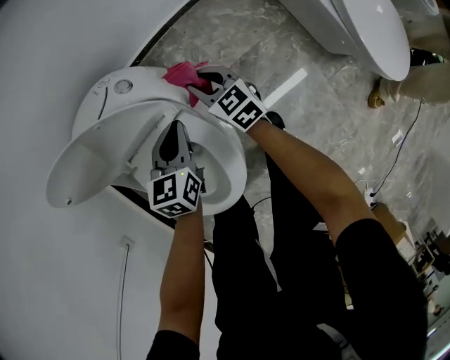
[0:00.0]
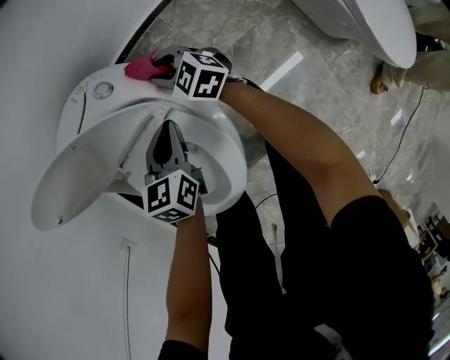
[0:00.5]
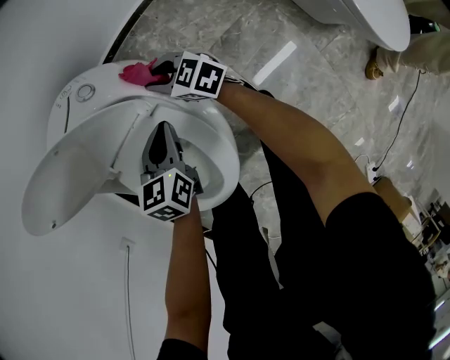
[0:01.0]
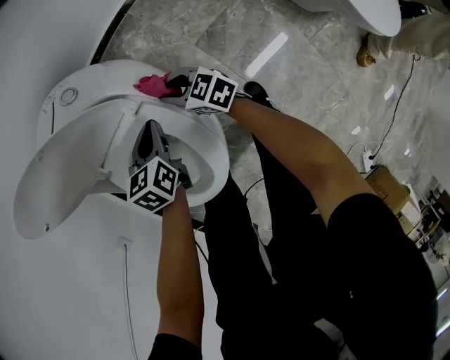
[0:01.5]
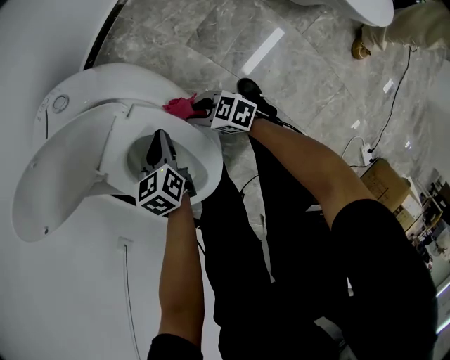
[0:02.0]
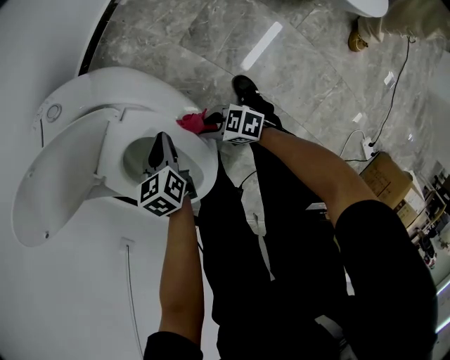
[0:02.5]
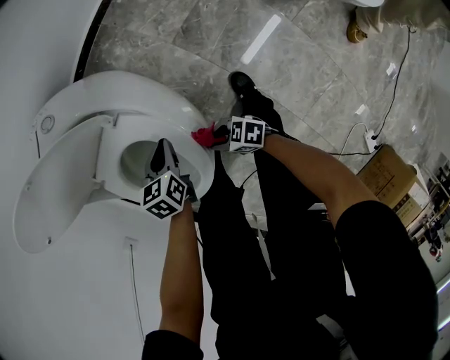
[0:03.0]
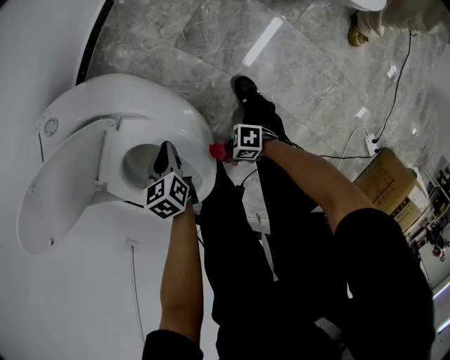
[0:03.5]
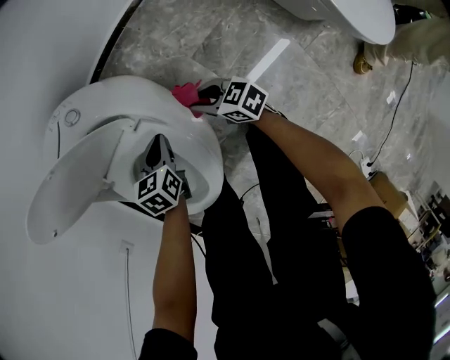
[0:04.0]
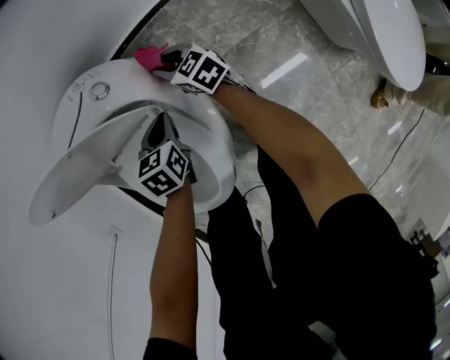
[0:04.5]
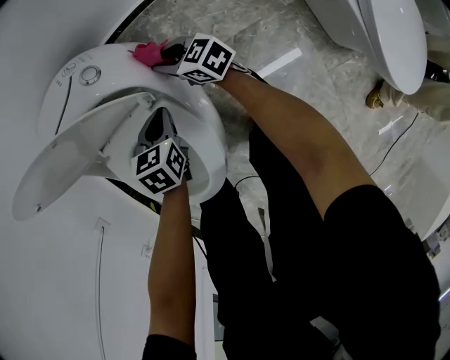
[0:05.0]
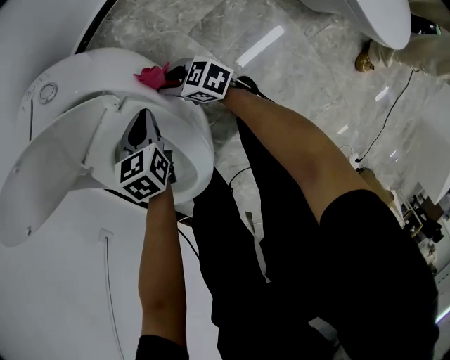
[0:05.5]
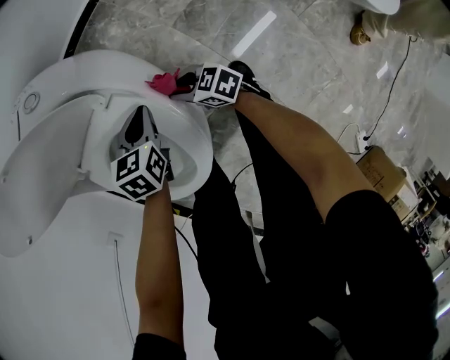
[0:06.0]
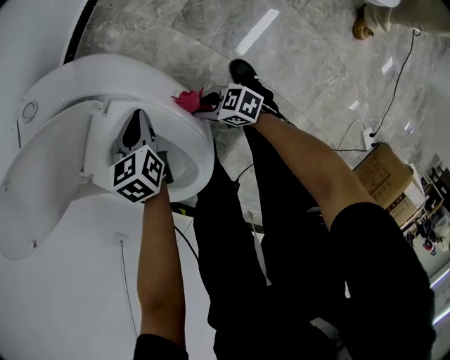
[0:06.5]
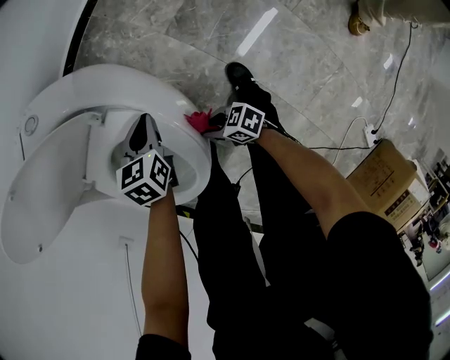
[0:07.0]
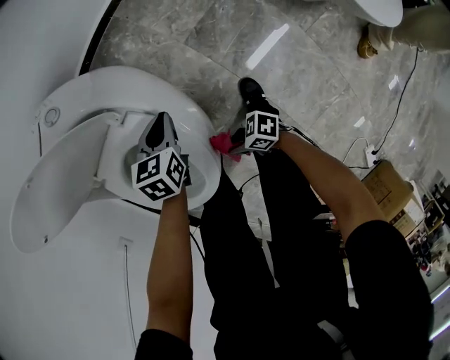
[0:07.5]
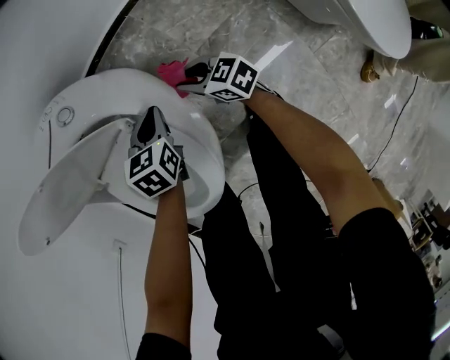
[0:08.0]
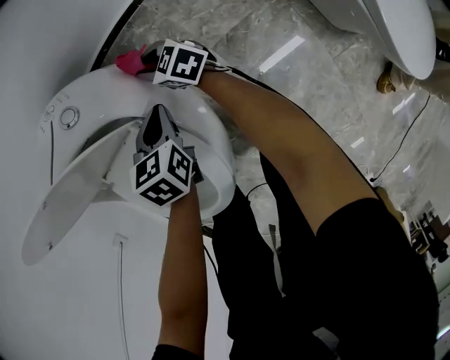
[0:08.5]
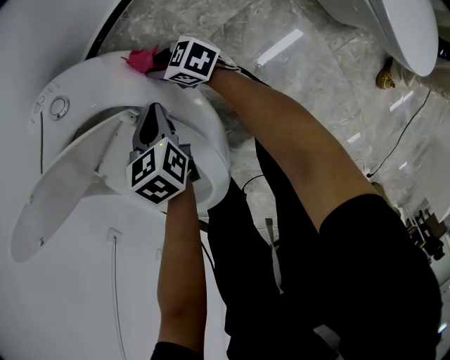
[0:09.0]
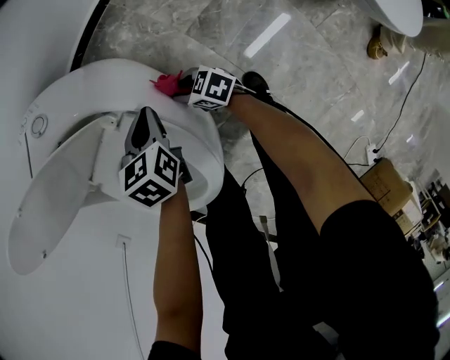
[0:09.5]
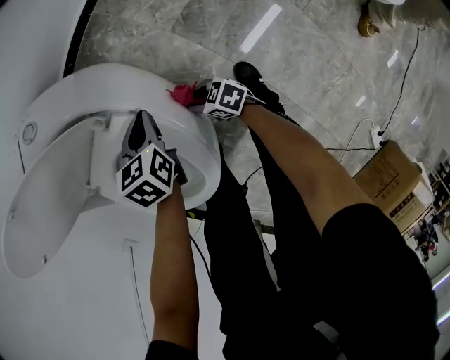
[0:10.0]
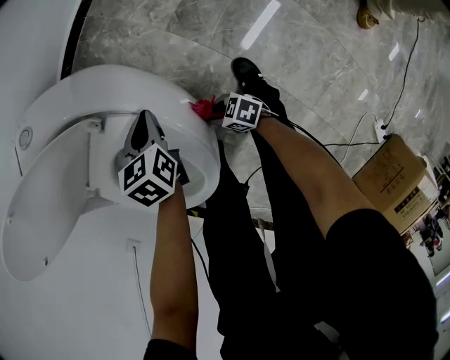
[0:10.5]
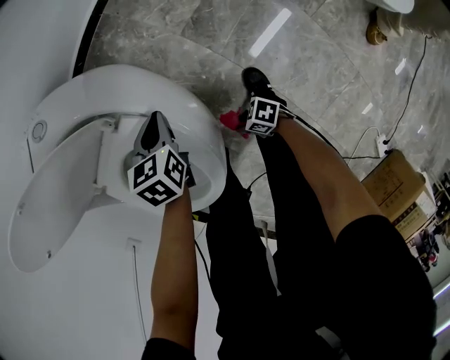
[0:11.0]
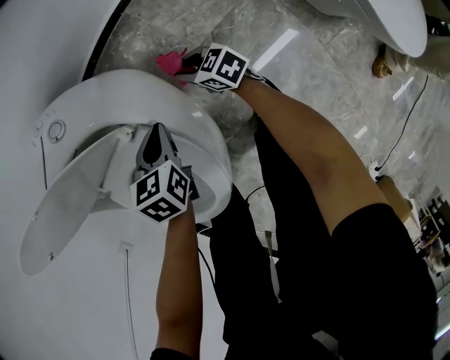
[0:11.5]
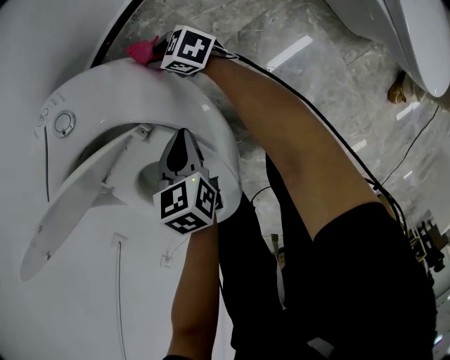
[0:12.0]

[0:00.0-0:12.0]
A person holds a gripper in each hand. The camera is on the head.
0:00.0 to 0:02.0: The left gripper is displaced downward and backward by roughly 15 cm; the right gripper goes approximately 20 cm backward and downward, and swivels roughly 30 degrees.
0:04.0 to 0:06.0: The right gripper goes approximately 10 cm to the left and downward, and goes forward and returns, about 20 cm each way. The left gripper travels forward and back again, roughly 10 cm each way.
0:06.0 to 0:08.0: The right gripper moves approximately 15 cm, while the left gripper moves about 10 cm.
0:08.0 to 0:10.0: The left gripper moves backward, some 5 cm. The right gripper goes some 20 cm backward, downward and to the left.
0:10.0 to 0:12.0: The right gripper shifts by roughly 30 cm.

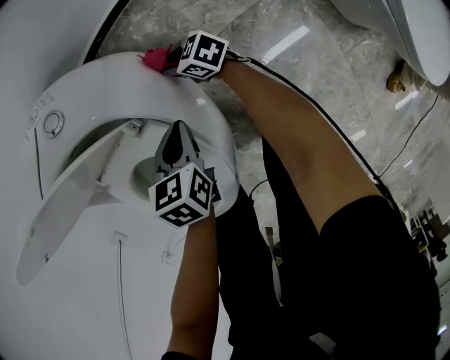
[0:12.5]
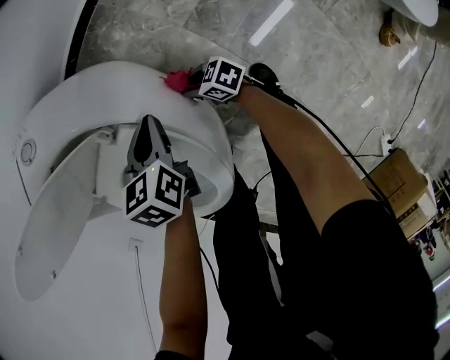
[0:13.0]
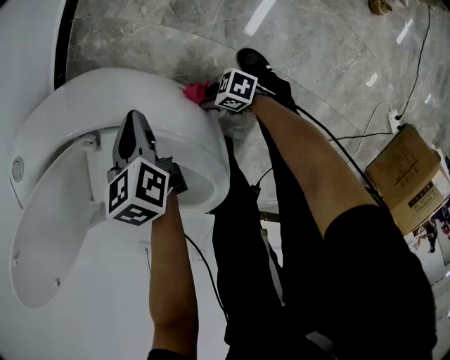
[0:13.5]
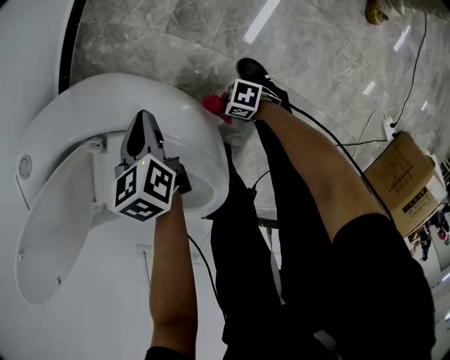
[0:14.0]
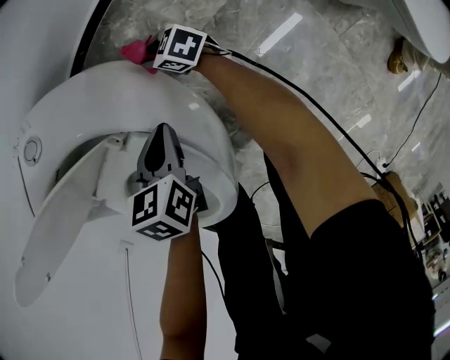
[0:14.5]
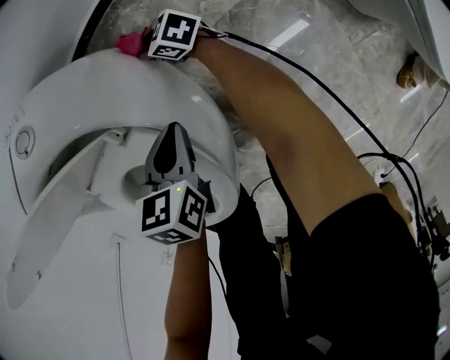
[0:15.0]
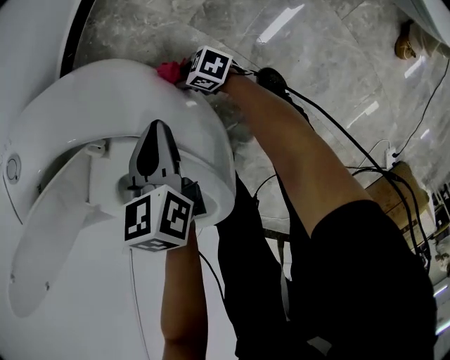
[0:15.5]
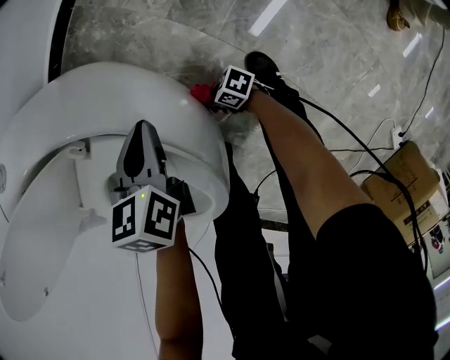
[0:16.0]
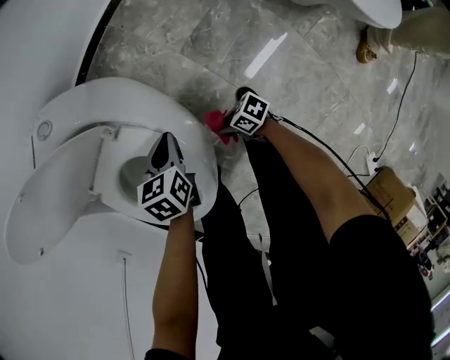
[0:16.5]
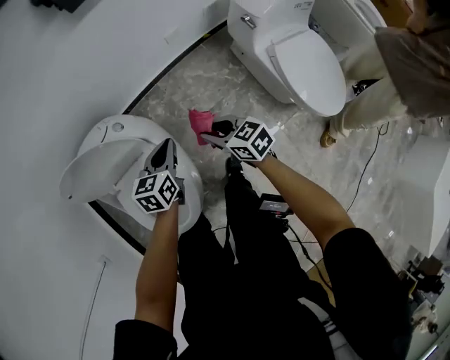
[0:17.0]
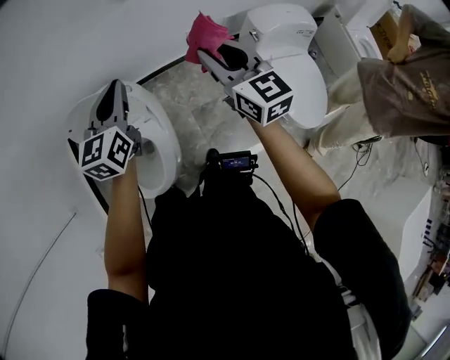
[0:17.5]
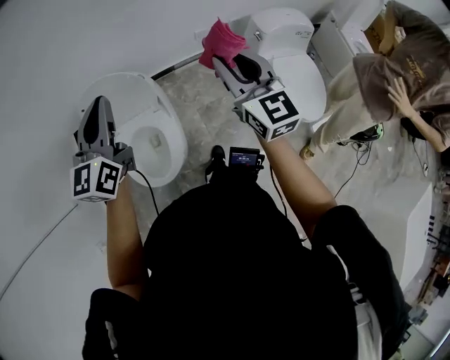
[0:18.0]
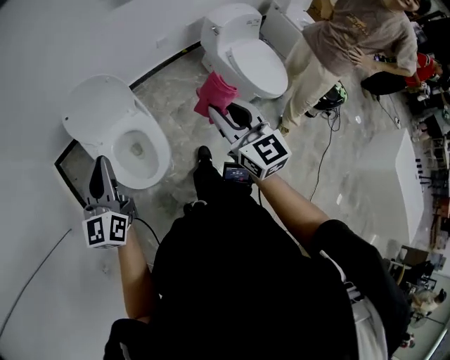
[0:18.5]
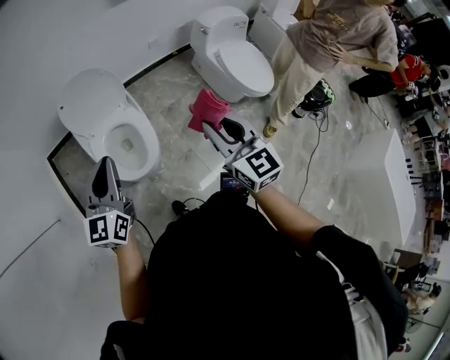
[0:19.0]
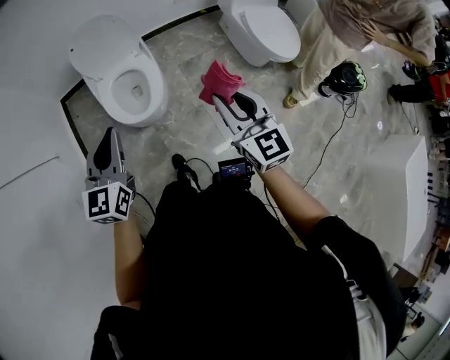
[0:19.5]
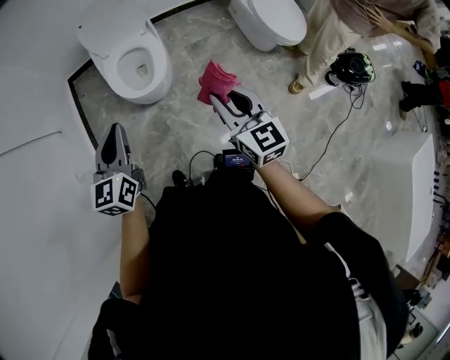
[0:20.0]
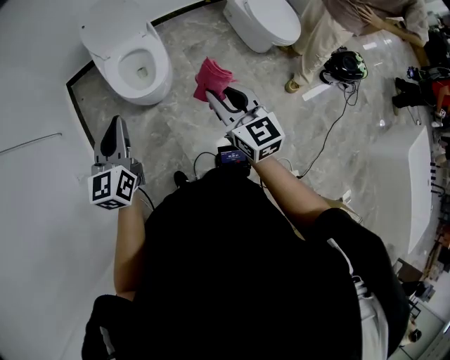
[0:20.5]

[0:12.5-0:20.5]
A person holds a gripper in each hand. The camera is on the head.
0:14.5 to 0:16.5: The right gripper moves approximately 10 cm downward and comes back, and rotates about 40 degrees; the left gripper shifts by about 10 cm.
0:16.5 to 0:18.5: The two grippers go about 70 cm upward. The left gripper points its fingers approximately 60 degrees further upward. The right gripper changes its angle by approximately 90 degrees.
0:18.5 to 0:20.5: The two grippers go approximately 30 cm backward.

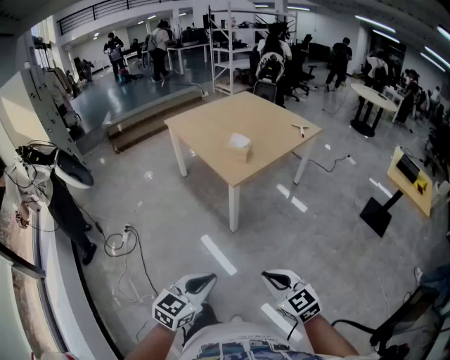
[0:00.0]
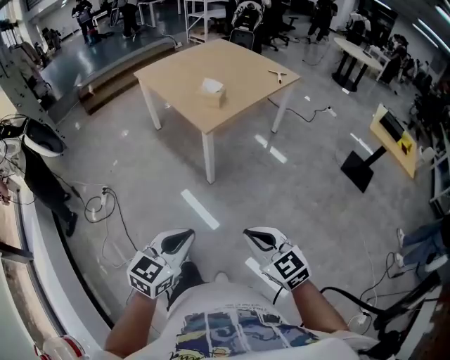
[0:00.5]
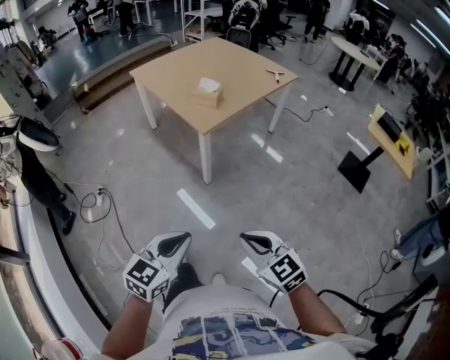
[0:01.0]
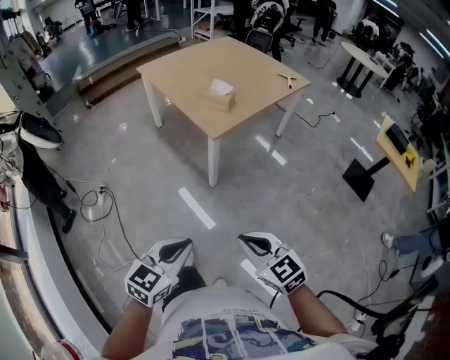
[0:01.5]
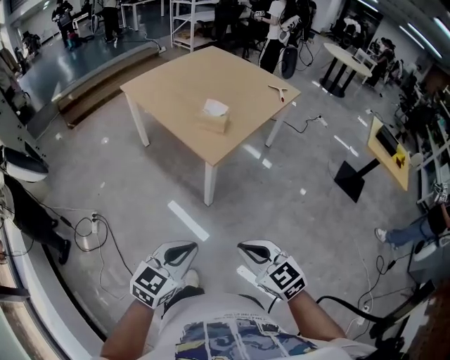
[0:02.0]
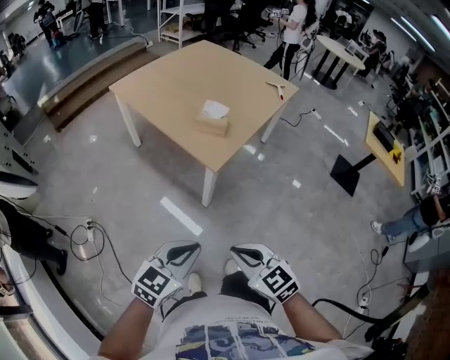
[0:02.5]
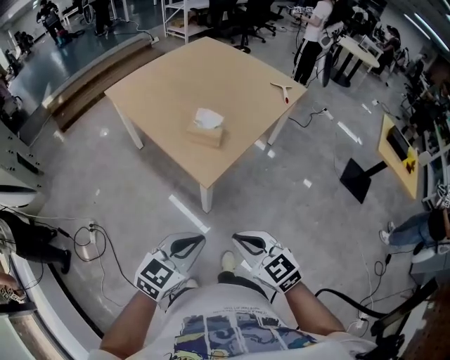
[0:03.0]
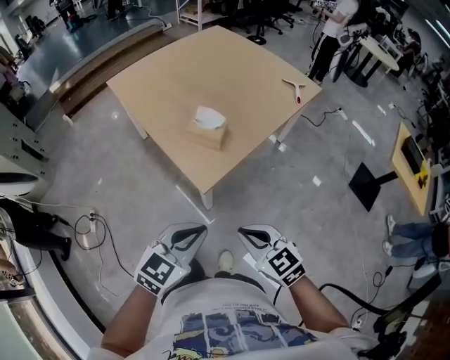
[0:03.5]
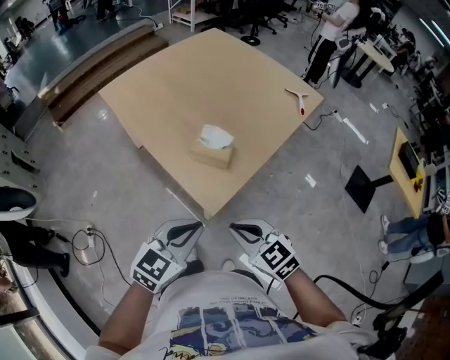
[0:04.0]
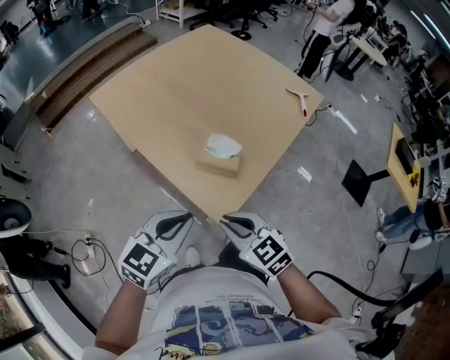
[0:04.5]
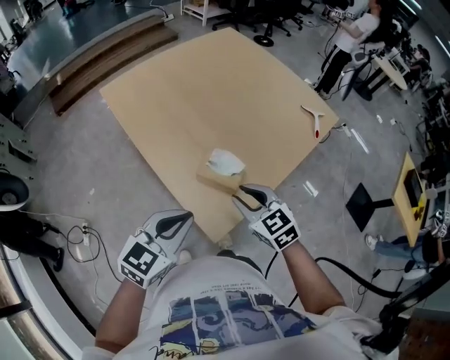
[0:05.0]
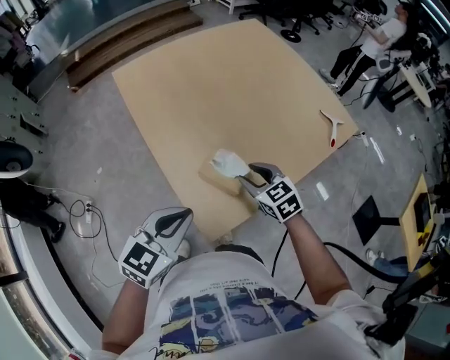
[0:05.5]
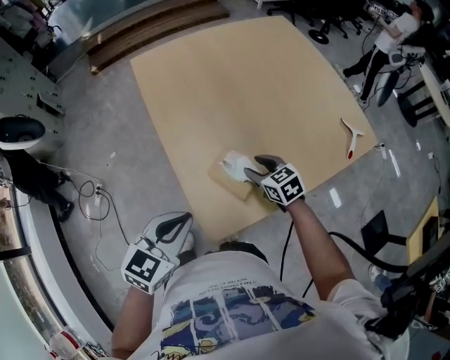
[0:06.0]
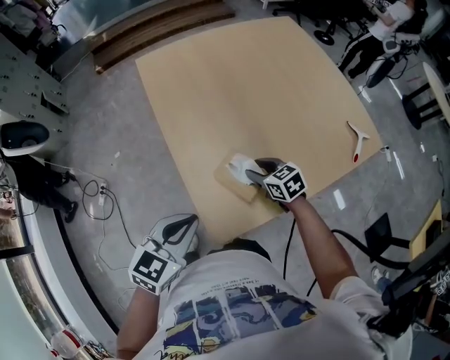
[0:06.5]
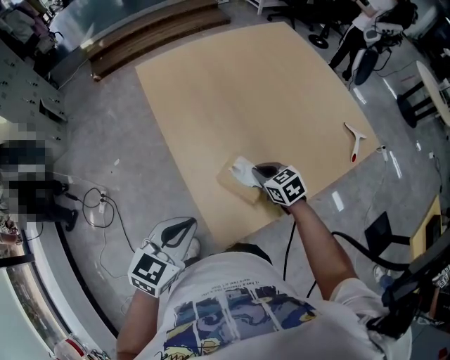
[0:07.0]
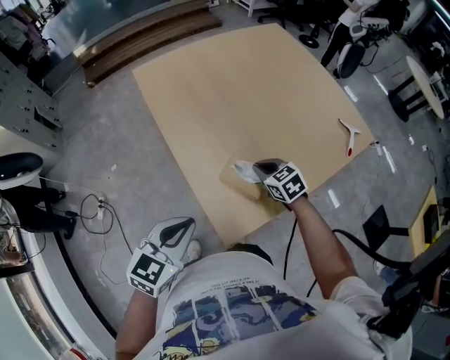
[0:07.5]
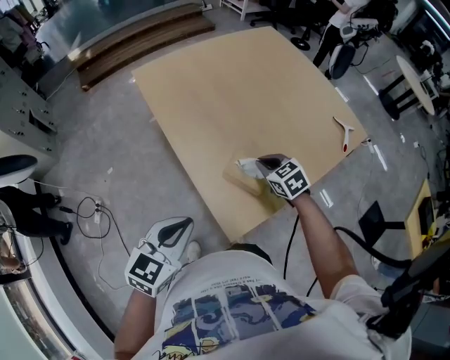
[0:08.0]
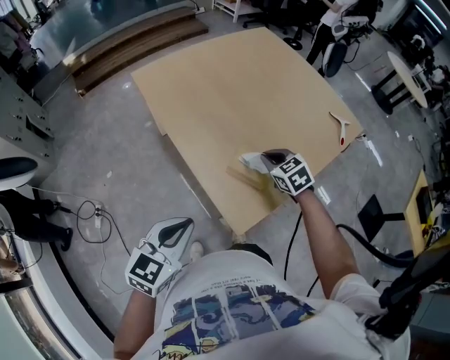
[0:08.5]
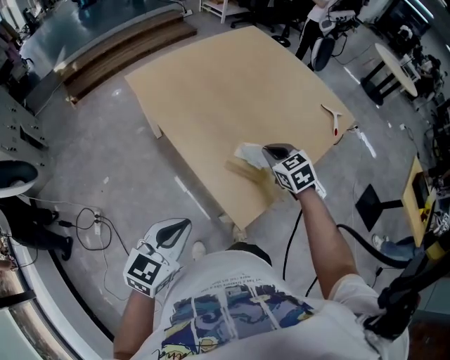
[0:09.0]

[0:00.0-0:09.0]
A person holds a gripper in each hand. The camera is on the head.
0:00.0 to 0:02.0: The right gripper moves forward and to the left, about 25 cm. The left gripper heads forward, covering about 25 cm.
0:02.0 to 0:04.5: The pair of grippers is taken forward, about 50 cm.
0:04.5 to 0:07.0: The right gripper ends up about 30 cm from where it was, and opens, then closes again. The left gripper shifts by some 5 cm, and turns by approximately 30 degrees.
0:07.0 to 0:09.0: The right gripper travels upward by some 10 cm, and turns by roughly 20 degrees, while the left gripper shifts about 10 cm to the left and backward.
